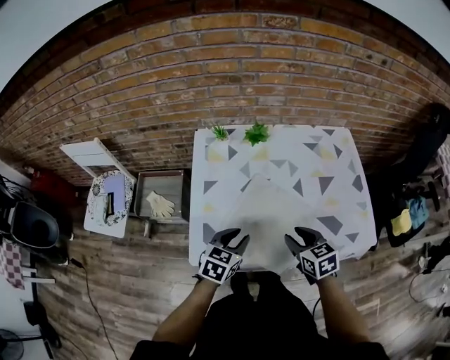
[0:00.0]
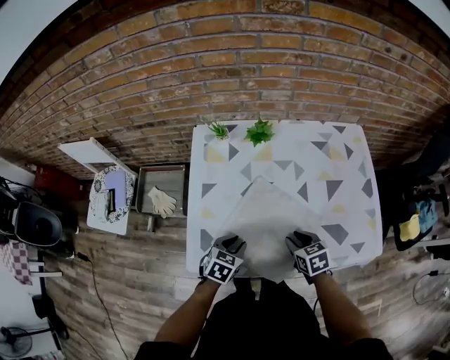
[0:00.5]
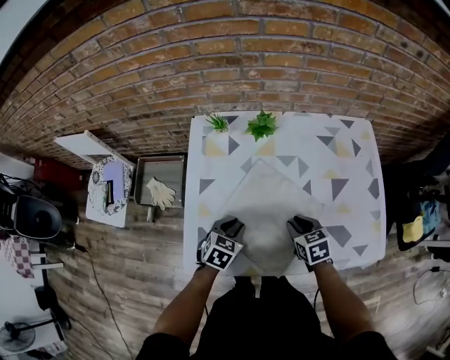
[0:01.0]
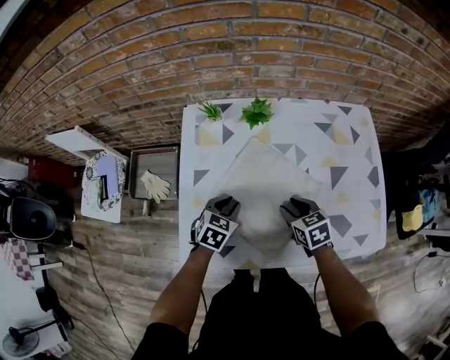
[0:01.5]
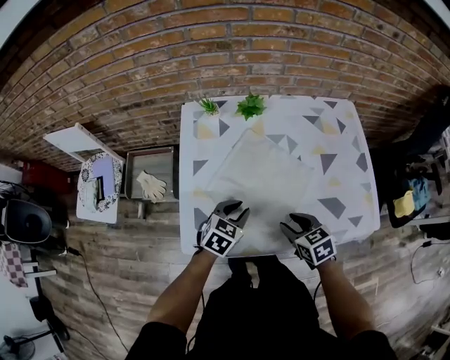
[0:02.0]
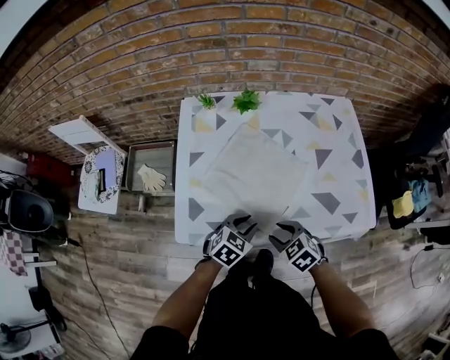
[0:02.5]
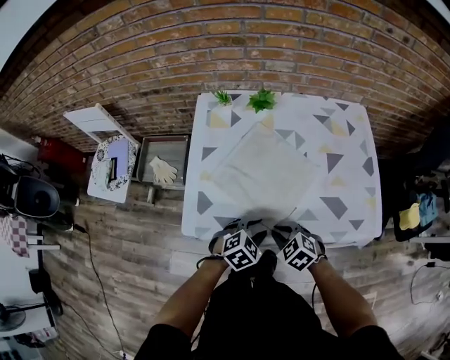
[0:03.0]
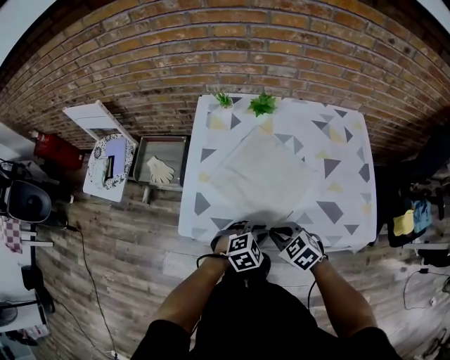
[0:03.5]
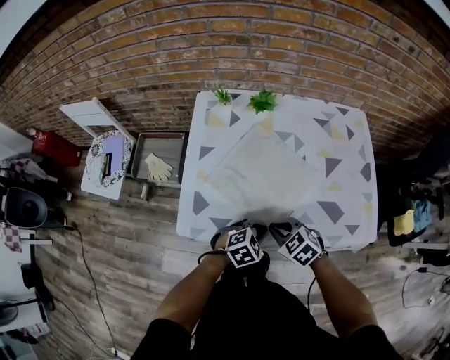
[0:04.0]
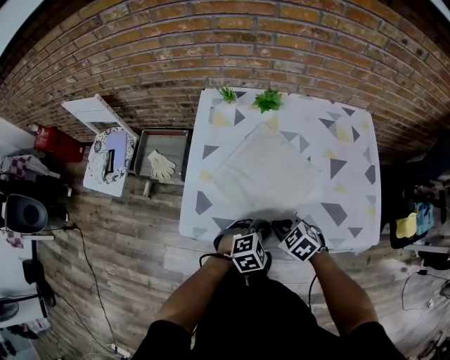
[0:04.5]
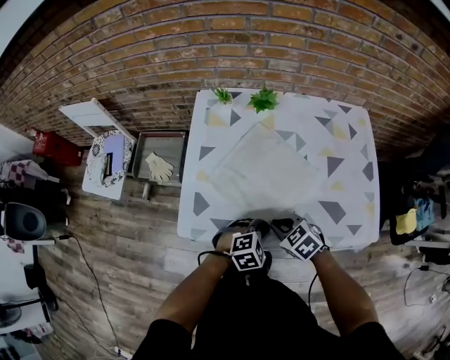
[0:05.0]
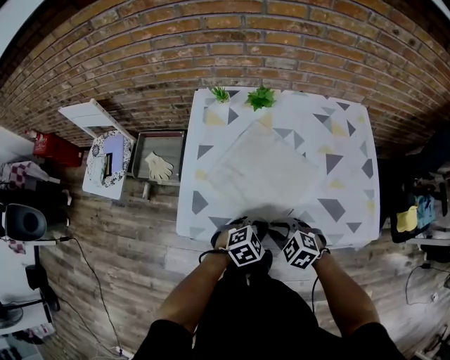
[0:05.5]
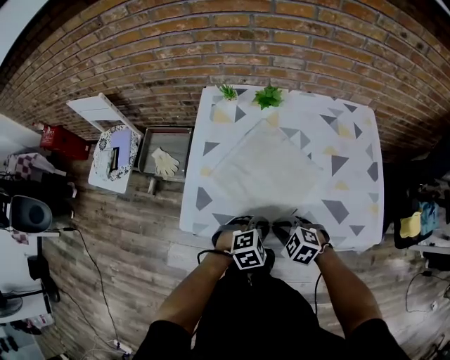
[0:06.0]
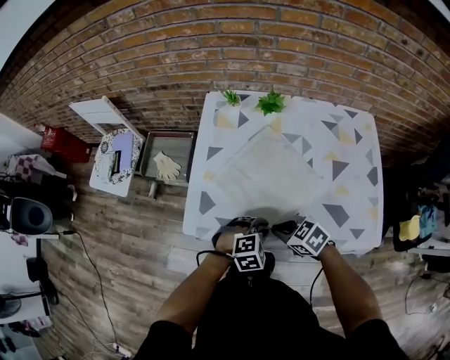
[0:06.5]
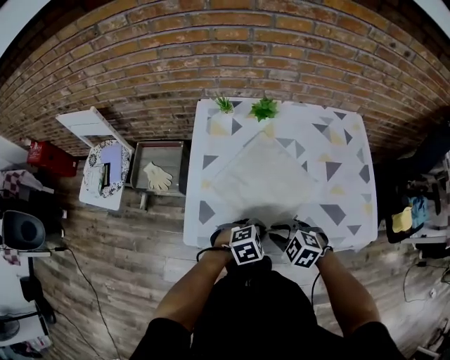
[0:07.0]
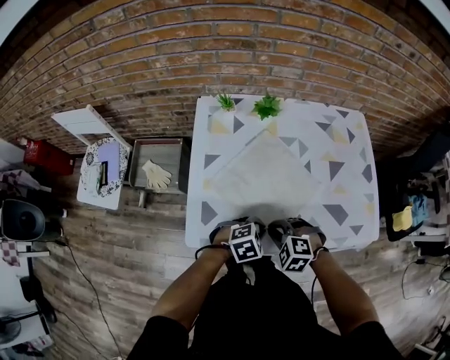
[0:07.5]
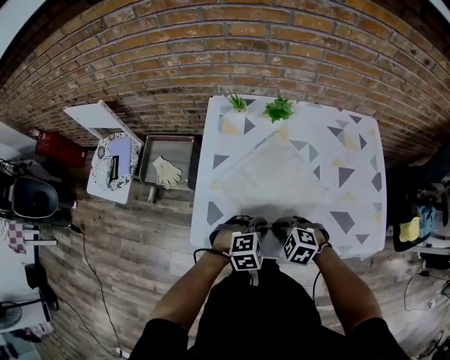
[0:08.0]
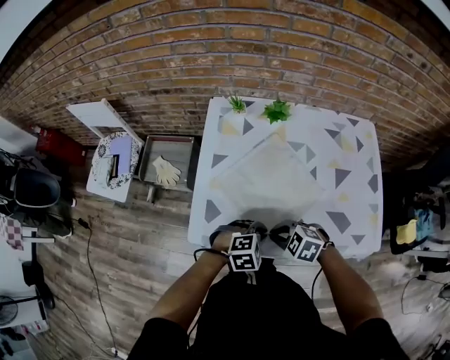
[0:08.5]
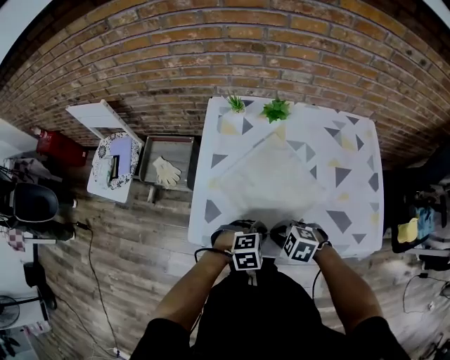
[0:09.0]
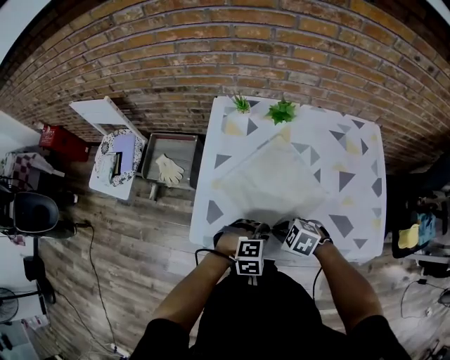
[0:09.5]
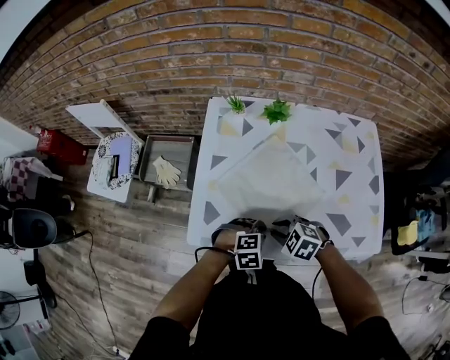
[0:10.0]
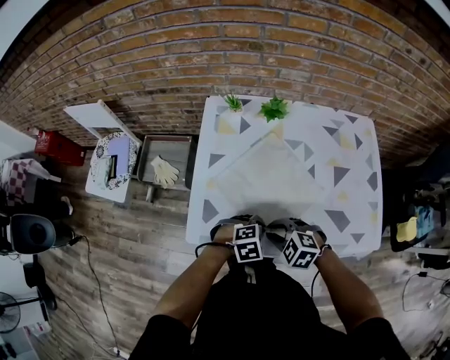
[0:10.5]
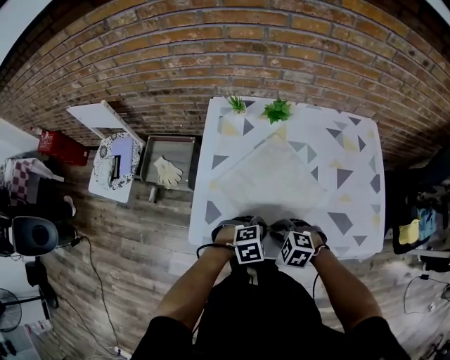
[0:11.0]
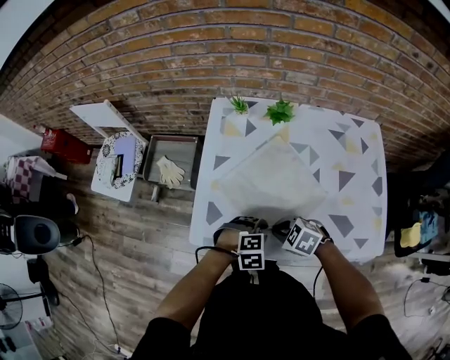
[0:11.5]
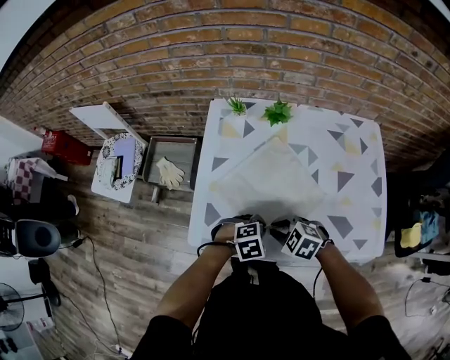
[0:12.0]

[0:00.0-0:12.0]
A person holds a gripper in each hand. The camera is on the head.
0:00.0 to 0:02.0: Both grippers move downward, approximately 5 cm. The right gripper goes forward and returns, about 10 cm each way.
0:02.0 to 0:04.0: The right gripper moves roughly 5 cm, turns by about 30 degrees, and closes its fingers. The left gripper shifts by about 15 cm, rotates approximately 20 degrees, and closes up.
0:04.0 to 0:06.0: The grippers make only small movements.
0:06.0 to 0:08.0: The left gripper ends up about 5 cm from where it was. The right gripper changes place by about 5 cm.
0:08.0 to 0:12.0: There are only small adjustments of the grippers.

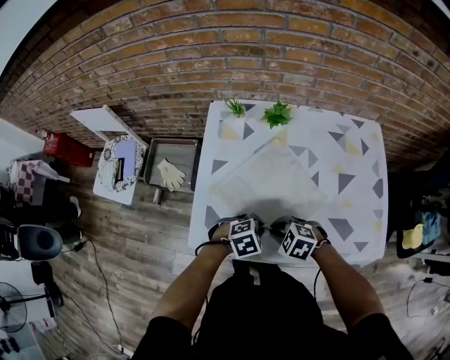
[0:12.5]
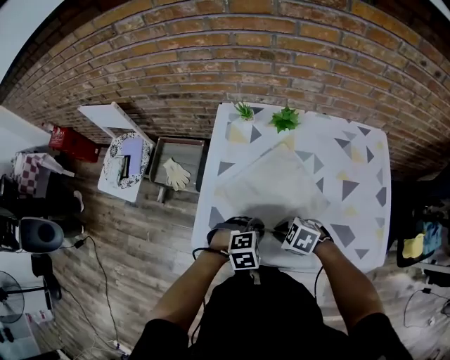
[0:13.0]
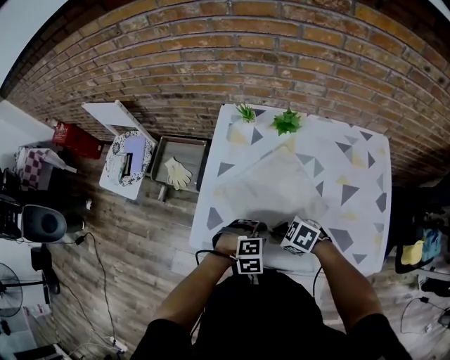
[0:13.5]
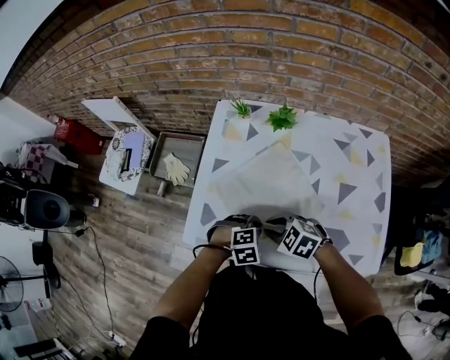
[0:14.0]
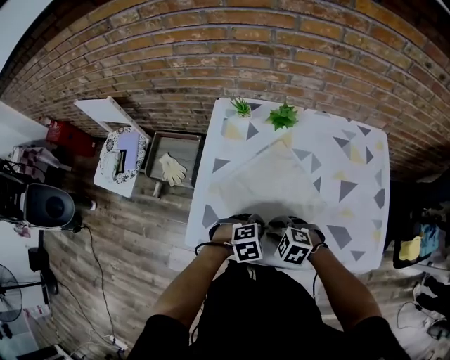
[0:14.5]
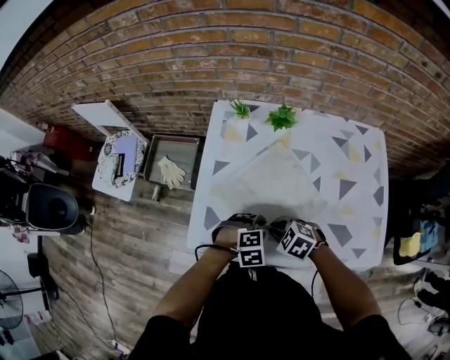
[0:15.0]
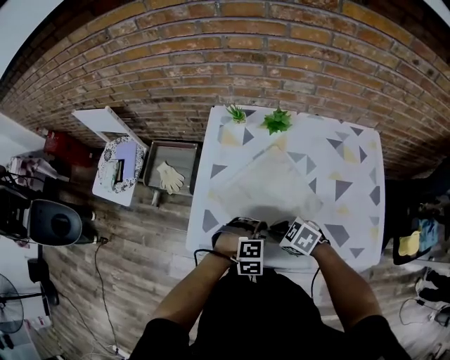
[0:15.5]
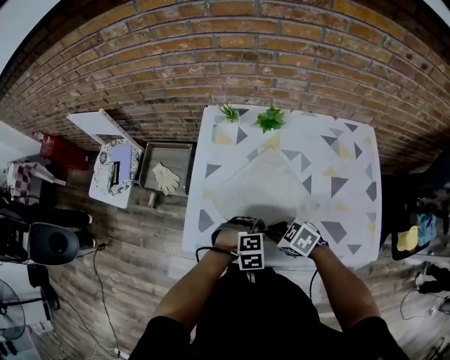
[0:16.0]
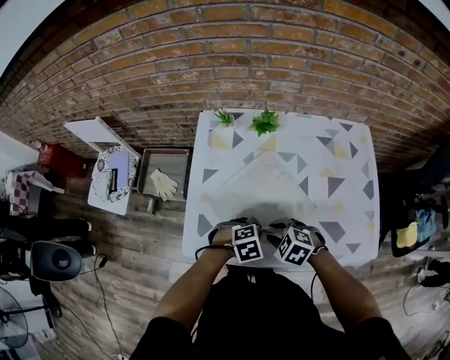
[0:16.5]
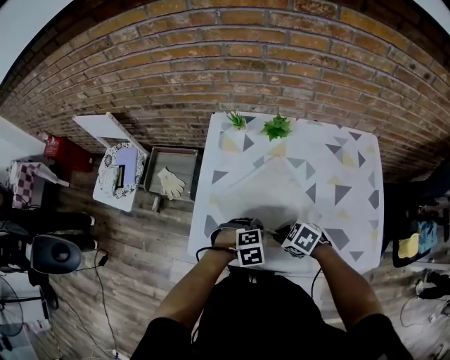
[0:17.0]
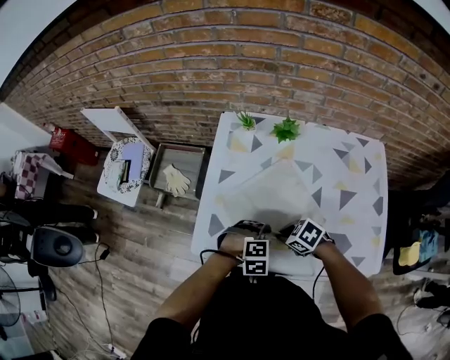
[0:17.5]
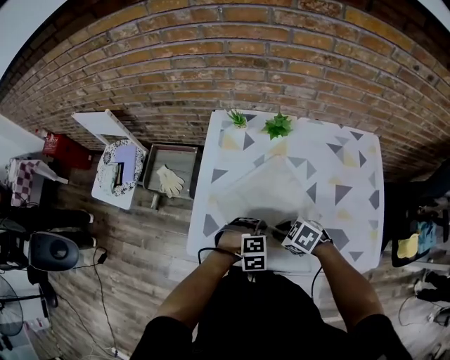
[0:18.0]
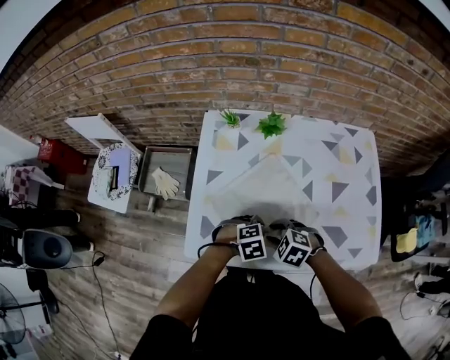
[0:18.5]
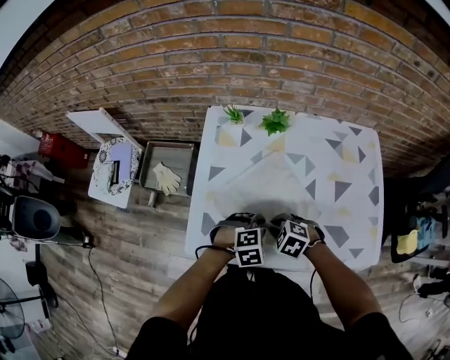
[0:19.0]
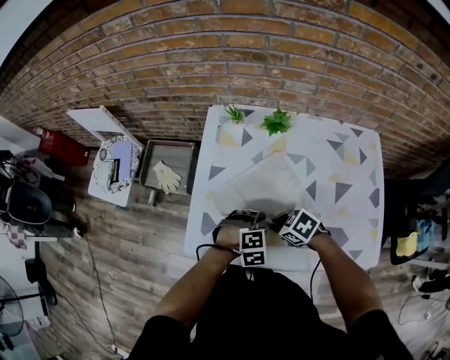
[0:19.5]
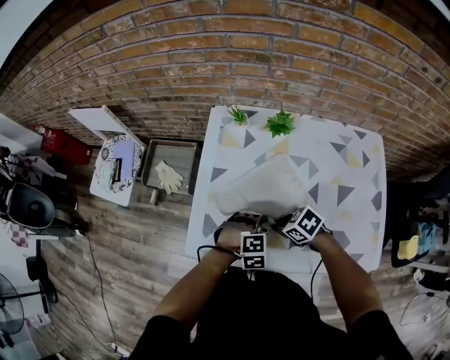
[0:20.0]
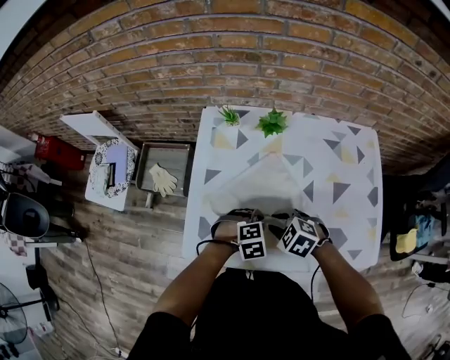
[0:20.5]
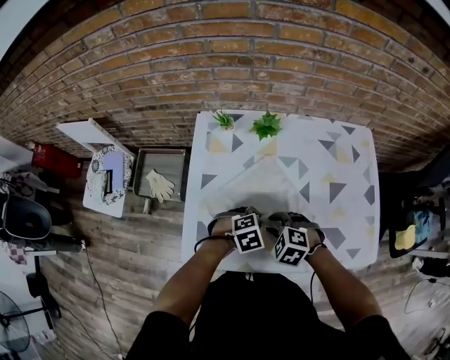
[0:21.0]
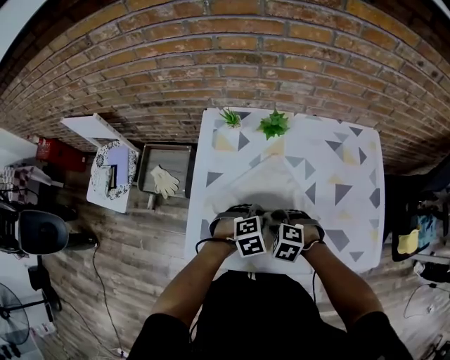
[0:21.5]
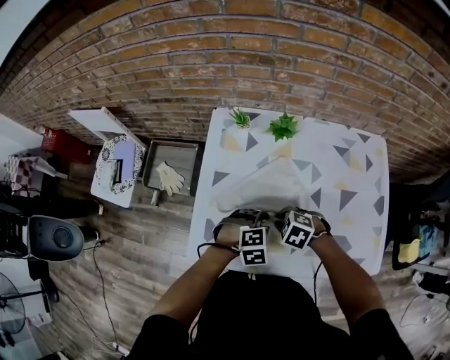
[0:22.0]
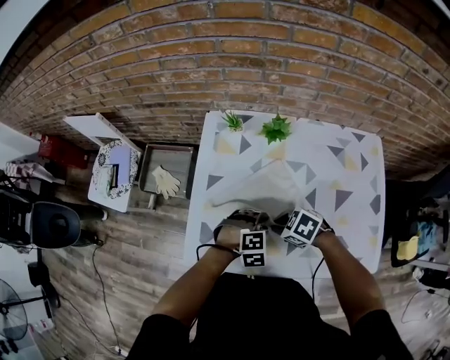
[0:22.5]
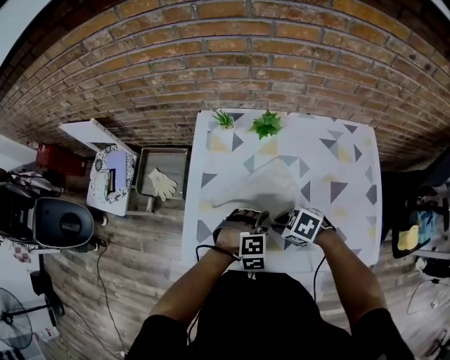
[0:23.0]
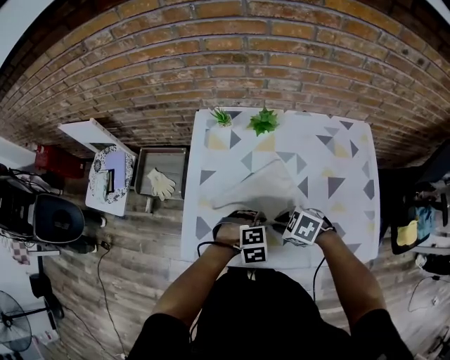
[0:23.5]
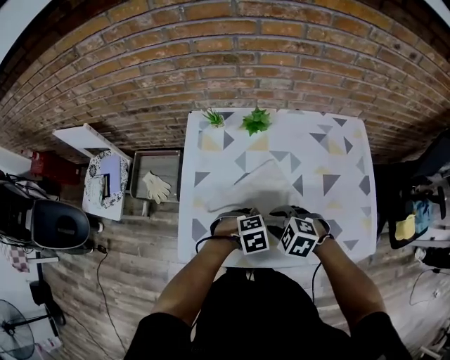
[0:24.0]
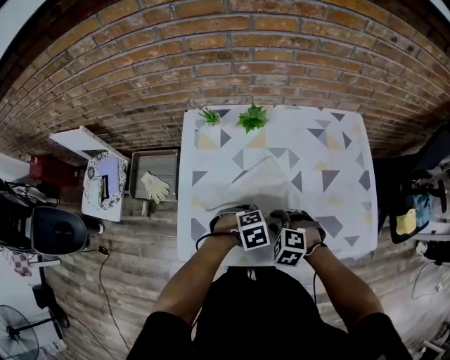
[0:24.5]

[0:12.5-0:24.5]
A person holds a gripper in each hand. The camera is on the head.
0:12.5 to 0:14.5: The right gripper opens. Meanwhile the left gripper opens, then closes again.
0:14.5 to 0:16.5: The left gripper opens and closes again. The right gripper closes, then reopens.
0:16.5 to 0:18.5: The right gripper closes and opens again.
0:18.5 to 0:20.5: The right gripper closes and opens again.
0:20.5 to 0:22.5: The grippers stay close to where they were, moving slightly.
0:22.5 to 0:24.5: The right gripper swivels about 30 degrees, and opens its fingers.

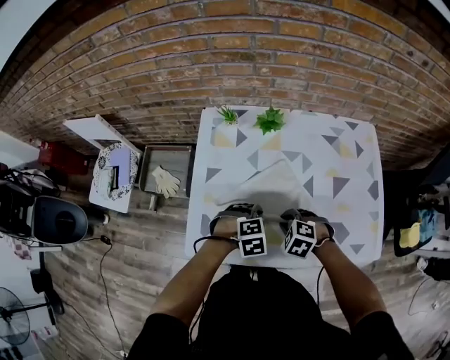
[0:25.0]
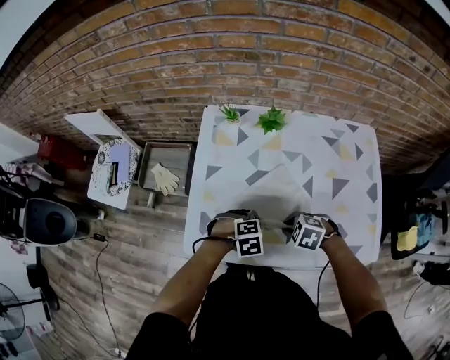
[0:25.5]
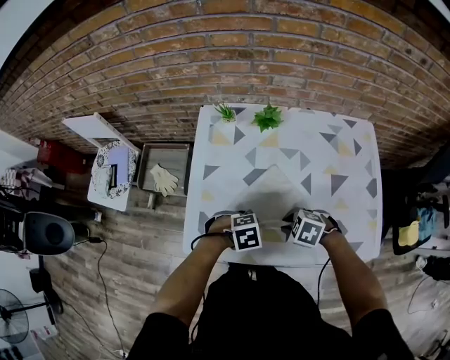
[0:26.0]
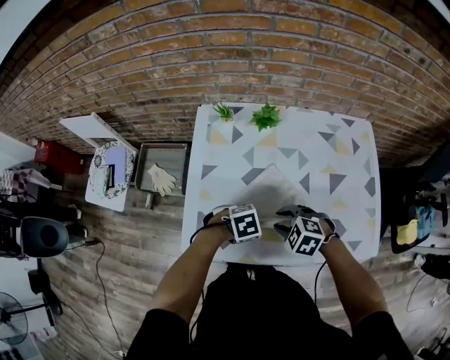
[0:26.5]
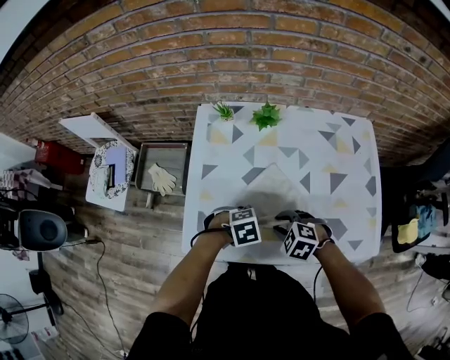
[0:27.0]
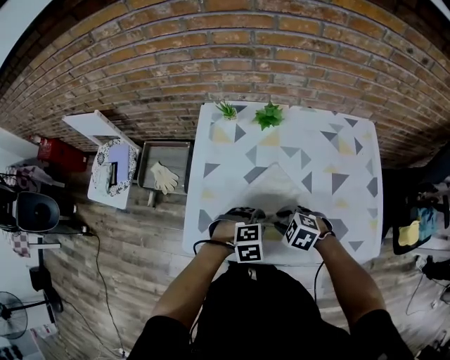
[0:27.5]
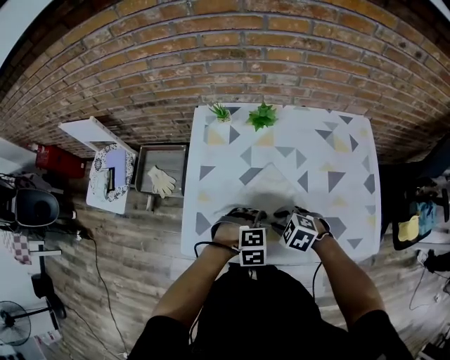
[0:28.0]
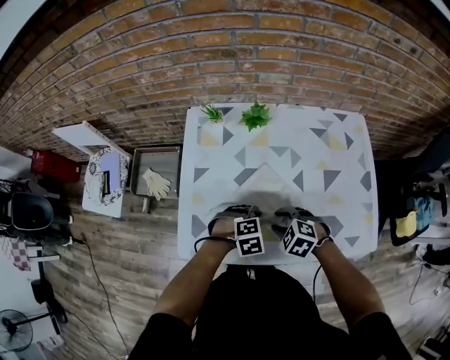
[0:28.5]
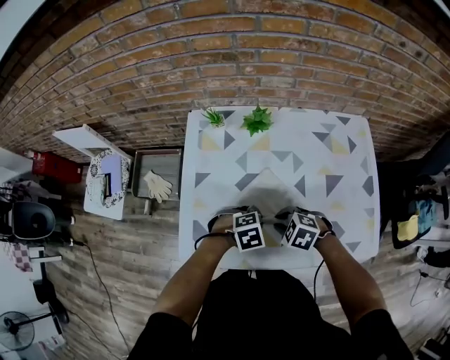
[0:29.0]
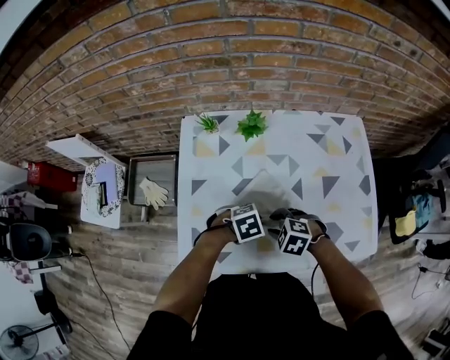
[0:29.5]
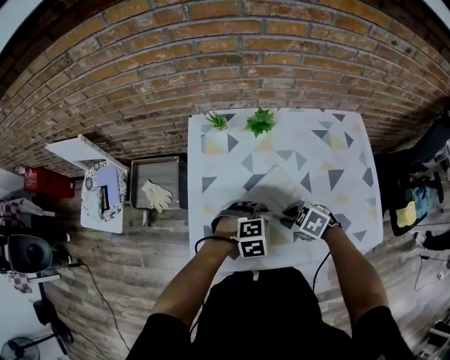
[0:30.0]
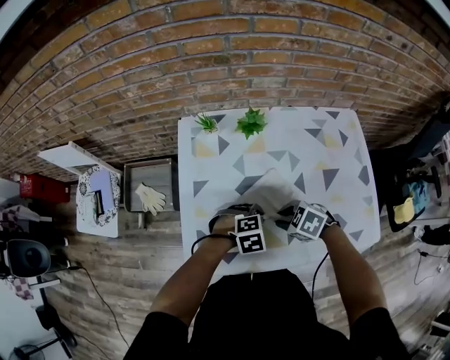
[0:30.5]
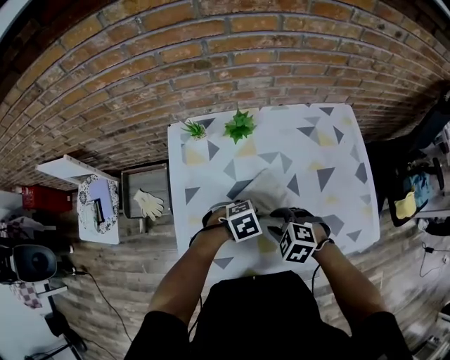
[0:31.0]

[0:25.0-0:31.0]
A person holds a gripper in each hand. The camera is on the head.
0:25.0 to 0:27.0: The left gripper closes up.
0:27.0 to 0:29.0: The left gripper opens, then closes again.
0:29.0 to 0:31.0: The left gripper opens, then closes once more.
